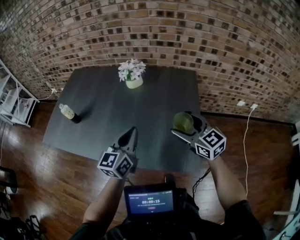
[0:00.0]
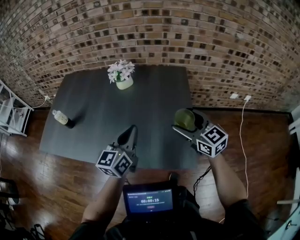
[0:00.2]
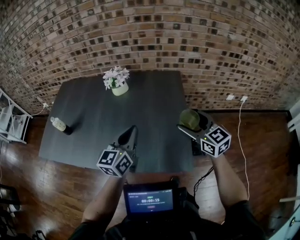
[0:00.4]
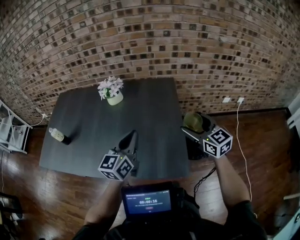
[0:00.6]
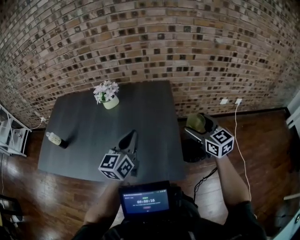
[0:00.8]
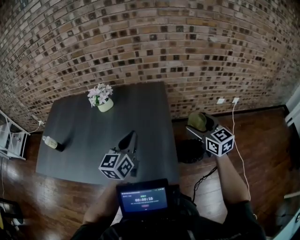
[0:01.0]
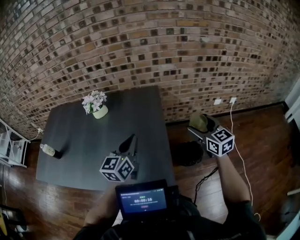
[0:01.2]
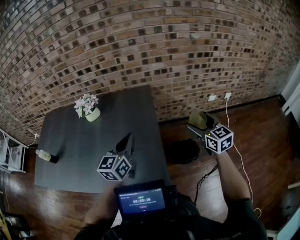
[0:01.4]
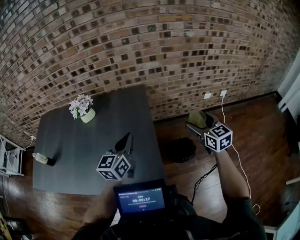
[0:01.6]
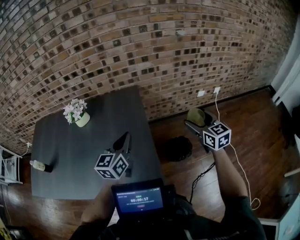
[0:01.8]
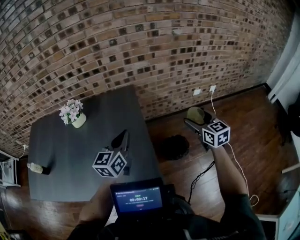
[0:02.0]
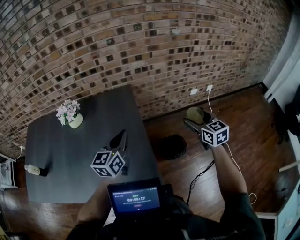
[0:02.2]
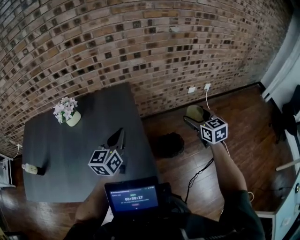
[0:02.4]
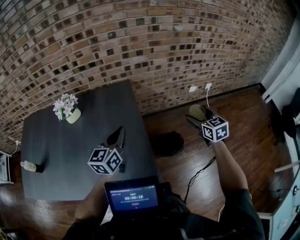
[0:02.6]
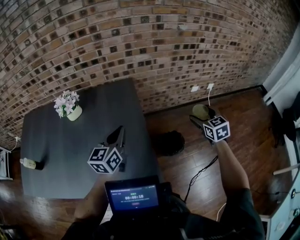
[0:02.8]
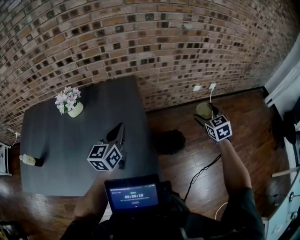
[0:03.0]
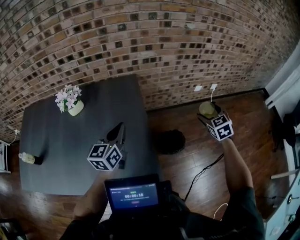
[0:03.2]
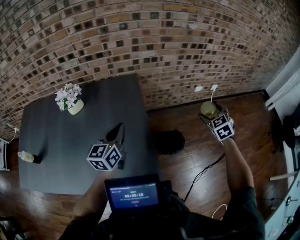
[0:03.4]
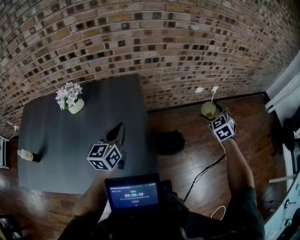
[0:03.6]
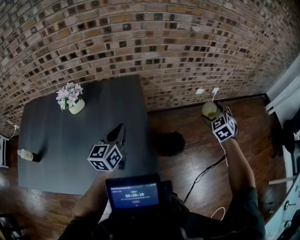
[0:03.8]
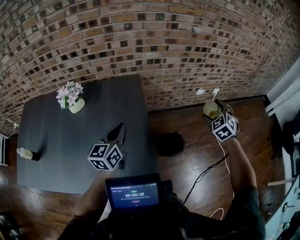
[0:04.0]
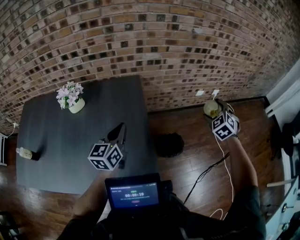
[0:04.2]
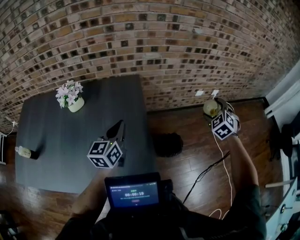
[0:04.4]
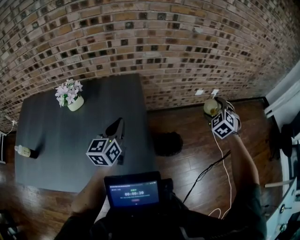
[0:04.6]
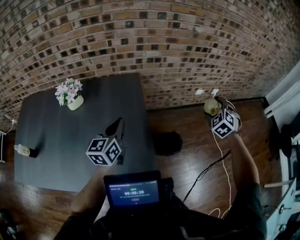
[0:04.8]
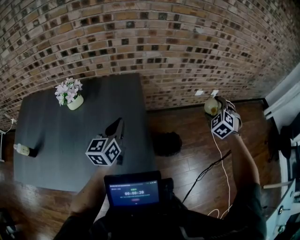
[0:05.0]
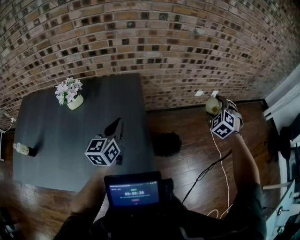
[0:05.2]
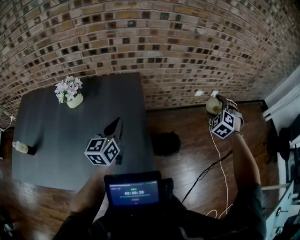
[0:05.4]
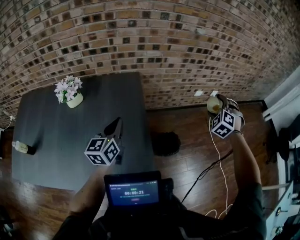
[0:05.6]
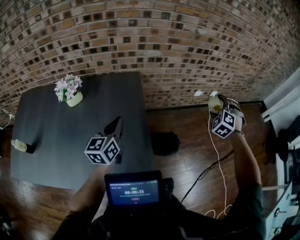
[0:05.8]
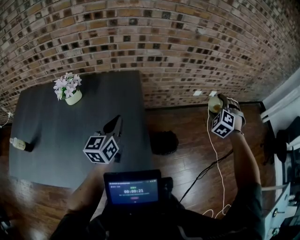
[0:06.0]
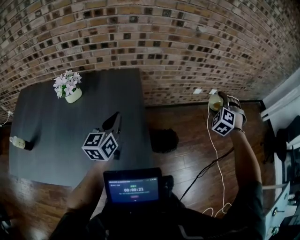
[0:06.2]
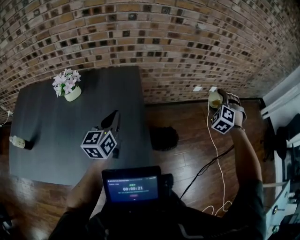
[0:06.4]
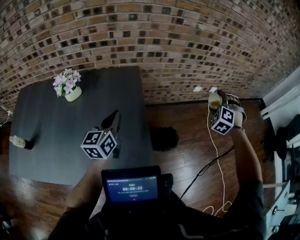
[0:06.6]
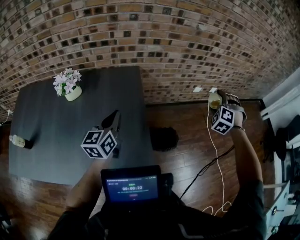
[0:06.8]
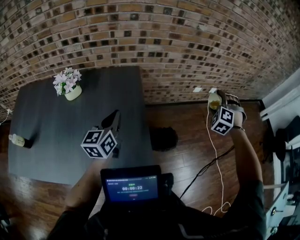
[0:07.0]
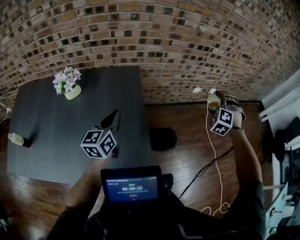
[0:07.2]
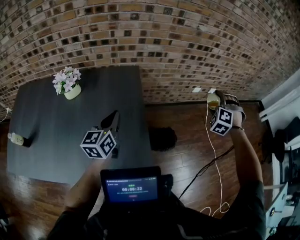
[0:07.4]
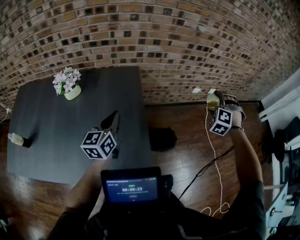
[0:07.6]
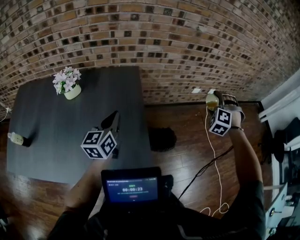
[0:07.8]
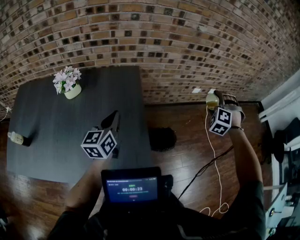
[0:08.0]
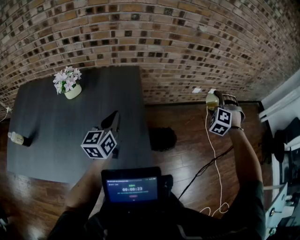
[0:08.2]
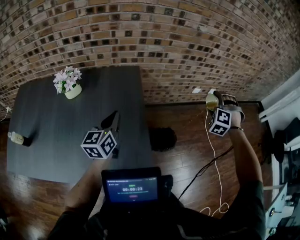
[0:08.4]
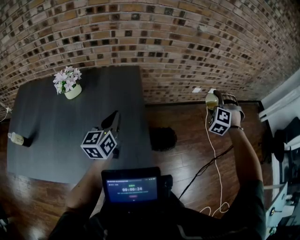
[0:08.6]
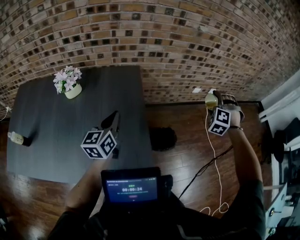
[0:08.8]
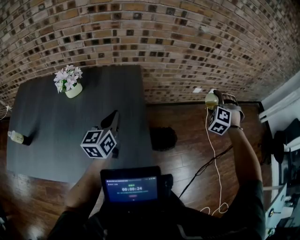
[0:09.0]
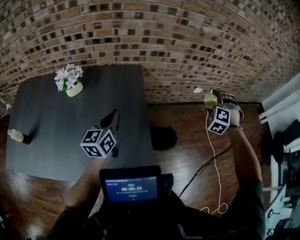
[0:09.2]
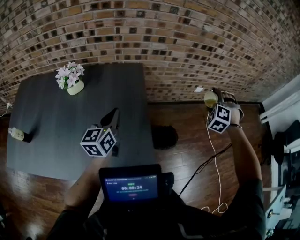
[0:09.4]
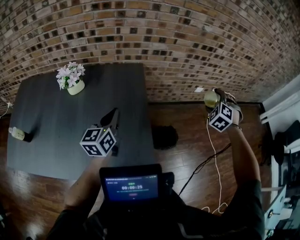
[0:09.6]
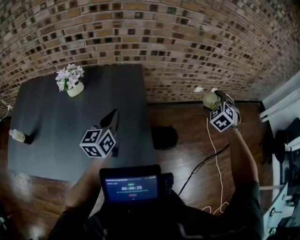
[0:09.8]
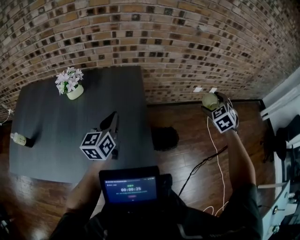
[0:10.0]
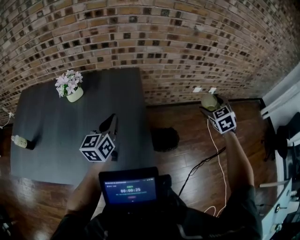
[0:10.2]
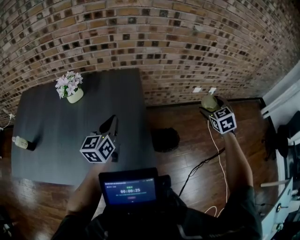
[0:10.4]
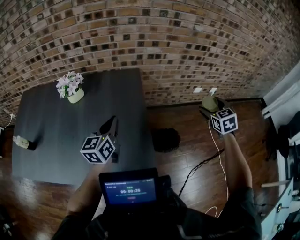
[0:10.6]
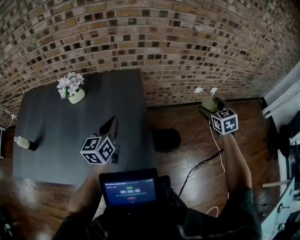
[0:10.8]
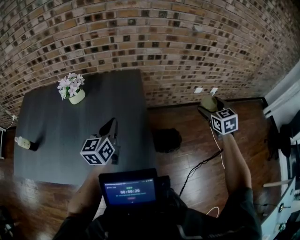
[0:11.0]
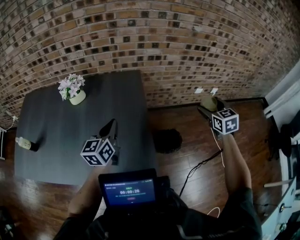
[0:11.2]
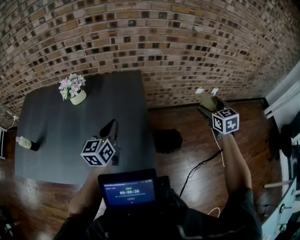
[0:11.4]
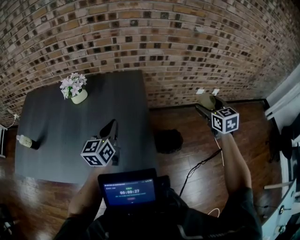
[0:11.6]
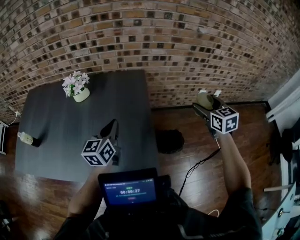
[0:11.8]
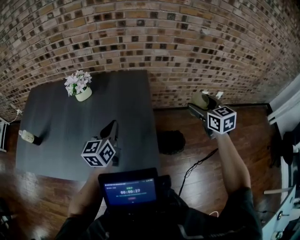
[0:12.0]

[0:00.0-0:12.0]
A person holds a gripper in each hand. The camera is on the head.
0:00.0 to 0:01.6: Both grippers travel together to the right, about 30 cm. The right gripper swivels about 30 degrees.
0:01.6 to 0:03.0: The right gripper travels to the right by roughly 5 cm, and rotates some 30 degrees. Meanwhile the left gripper travels forward by some 5 cm.
0:03.0 to 0:04.4: The right gripper ends up roughly 5 cm from where it was, and rotates about 30 degrees.
0:04.4 to 0:06.0: The right gripper turns by some 20 degrees.
0:06.0 to 0:09.0: There are only small adjustments of the grippers.
0:09.0 to 0:10.4: The right gripper rotates around the line of its fingers by approximately 50 degrees, clockwise from behind.
0:10.4 to 0:12.0: The right gripper heads to the left, covering about 10 cm, and rotates about 30 degrees.

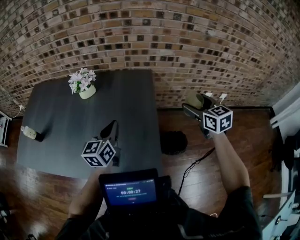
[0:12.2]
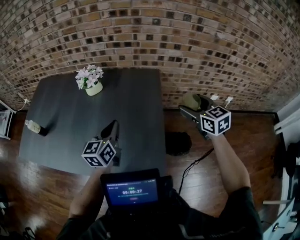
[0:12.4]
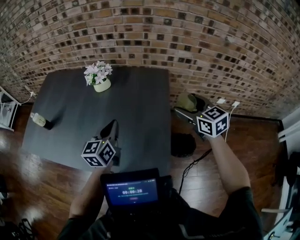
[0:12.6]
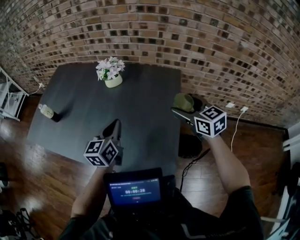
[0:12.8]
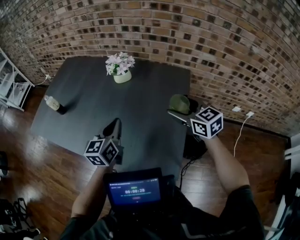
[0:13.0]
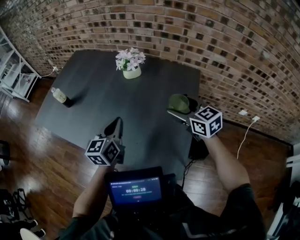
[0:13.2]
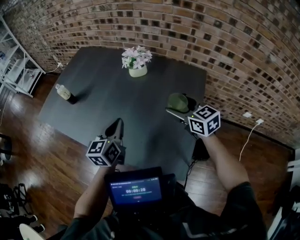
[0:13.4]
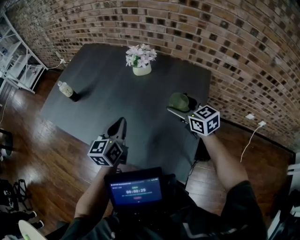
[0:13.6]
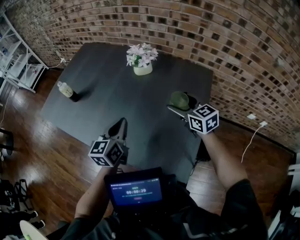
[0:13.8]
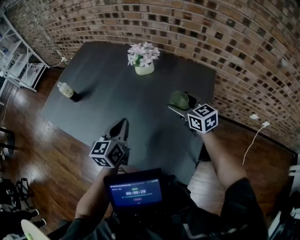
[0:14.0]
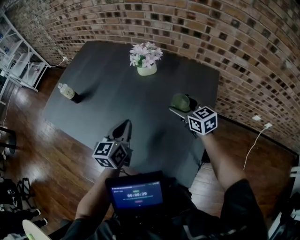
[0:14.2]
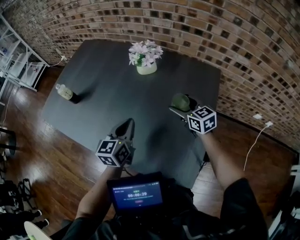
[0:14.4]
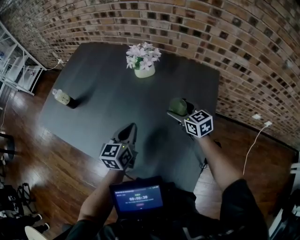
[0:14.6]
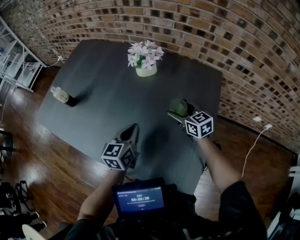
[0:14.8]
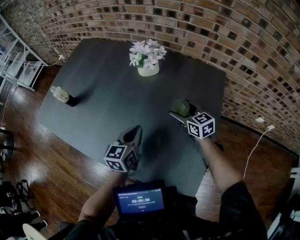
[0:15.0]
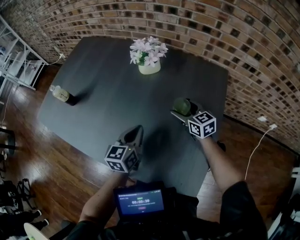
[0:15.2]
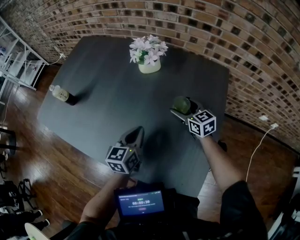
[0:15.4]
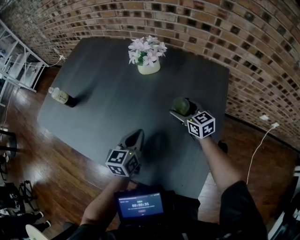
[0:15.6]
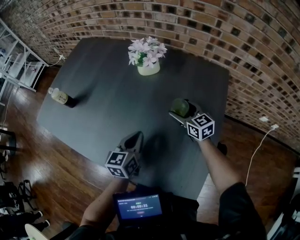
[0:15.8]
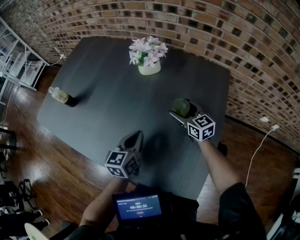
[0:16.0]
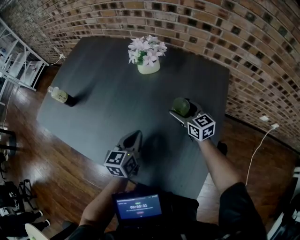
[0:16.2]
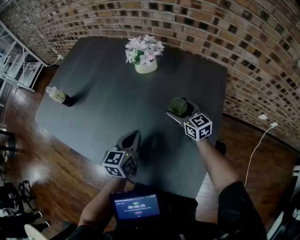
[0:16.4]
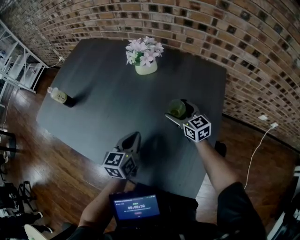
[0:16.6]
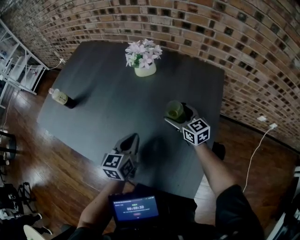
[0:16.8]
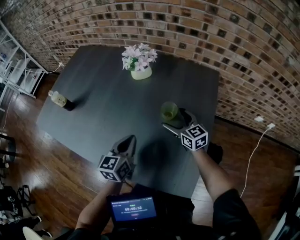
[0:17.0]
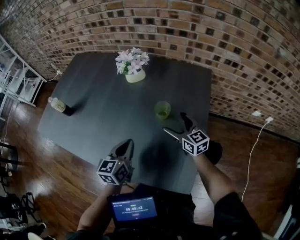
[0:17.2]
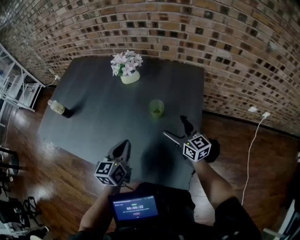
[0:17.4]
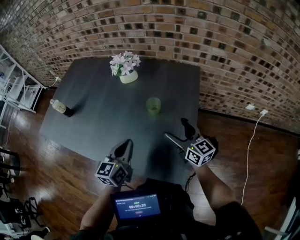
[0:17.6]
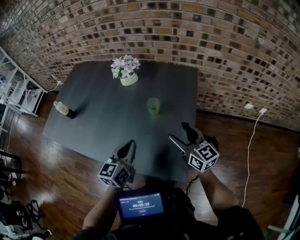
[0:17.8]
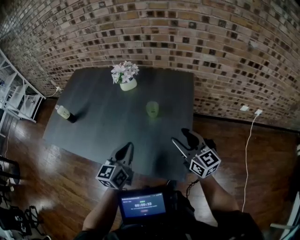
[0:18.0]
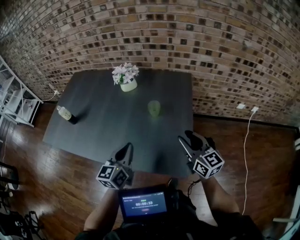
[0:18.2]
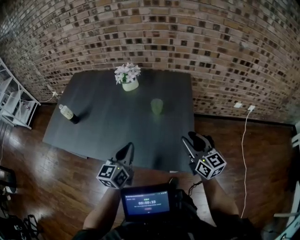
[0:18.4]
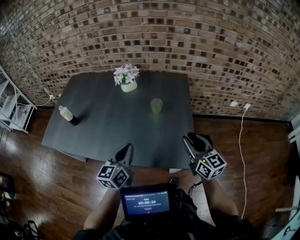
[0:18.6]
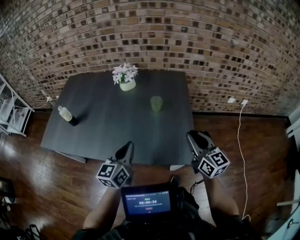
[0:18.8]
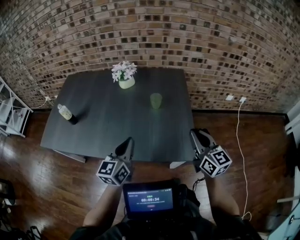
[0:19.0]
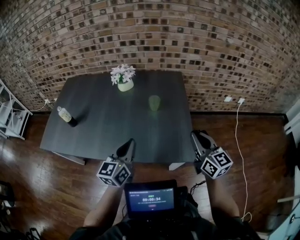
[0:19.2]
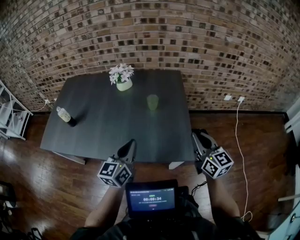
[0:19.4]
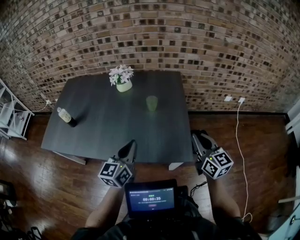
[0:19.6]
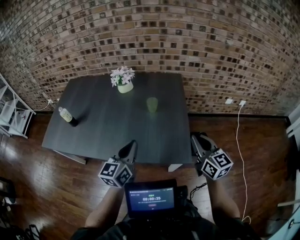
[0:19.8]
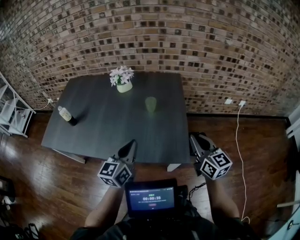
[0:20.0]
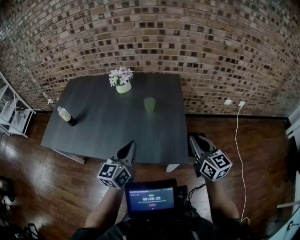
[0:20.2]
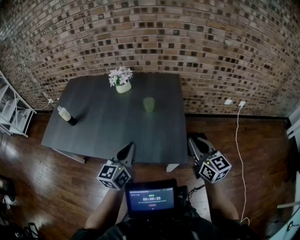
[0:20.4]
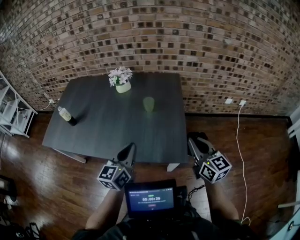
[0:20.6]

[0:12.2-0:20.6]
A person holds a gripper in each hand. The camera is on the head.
0:12.2 to 0:13.6: The right gripper ends up roughly 35 cm from where it was, and rotates about 30 degrees, while the left gripper changes place by some 20 cm, and changes its angle by roughly 20 degrees.
0:13.6 to 0:15.0: The grippers both shift downward and forward by some 15 cm.
0:15.0 to 0:16.4: There are only small adjustments of the grippers.
0:16.4 to 0:17.8: The left gripper shifts about 15 cm backward and upward; the right gripper moves backward and upward, approximately 30 cm.
0:17.8 to 0:19.2: The left gripper shifts some 15 cm to the left, backward and upward. Meanwhile the right gripper goes some 20 cm backward and upward, swivels approximately 20 degrees, and closes.
0:19.2 to 0:20.6: The right gripper changes place by roughly 5 cm. Meanwhile the left gripper moves to the right, approximately 5 cm.

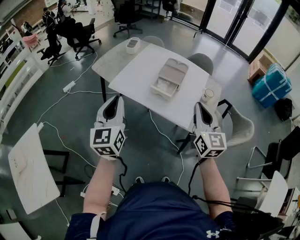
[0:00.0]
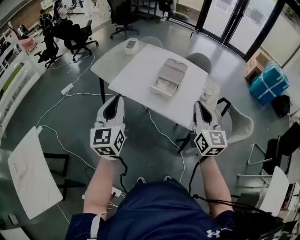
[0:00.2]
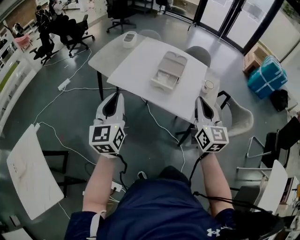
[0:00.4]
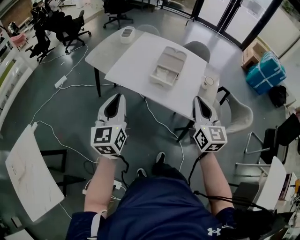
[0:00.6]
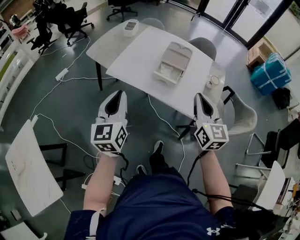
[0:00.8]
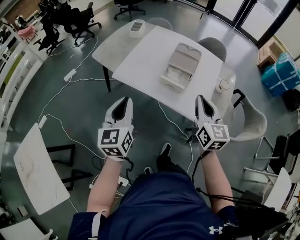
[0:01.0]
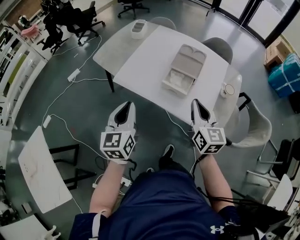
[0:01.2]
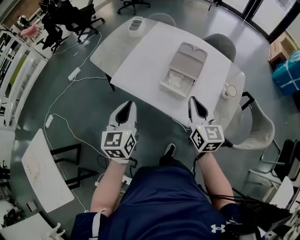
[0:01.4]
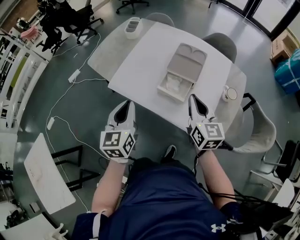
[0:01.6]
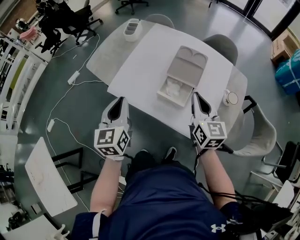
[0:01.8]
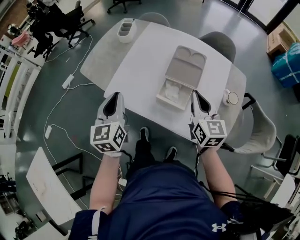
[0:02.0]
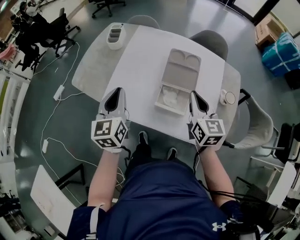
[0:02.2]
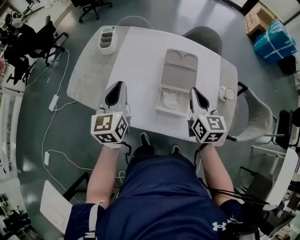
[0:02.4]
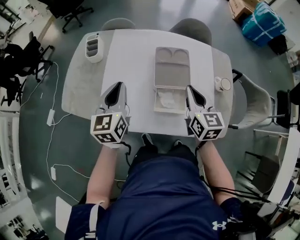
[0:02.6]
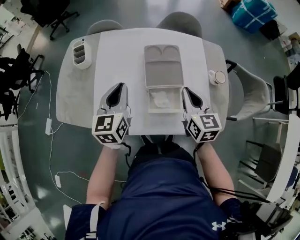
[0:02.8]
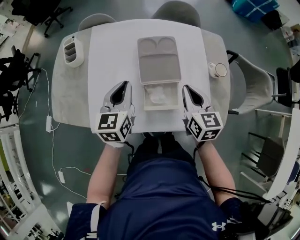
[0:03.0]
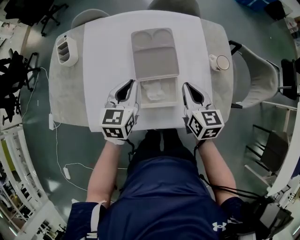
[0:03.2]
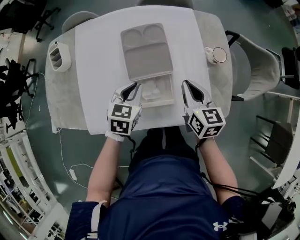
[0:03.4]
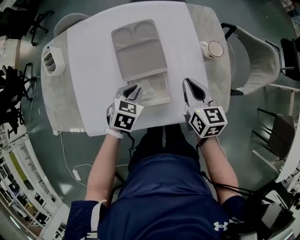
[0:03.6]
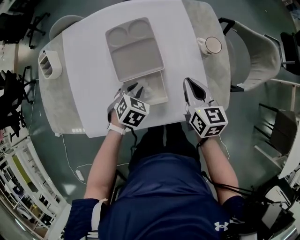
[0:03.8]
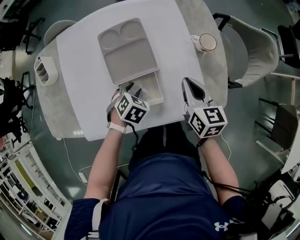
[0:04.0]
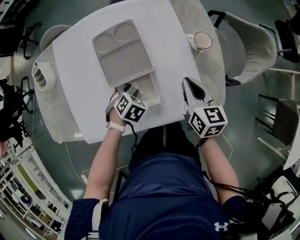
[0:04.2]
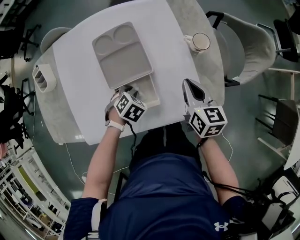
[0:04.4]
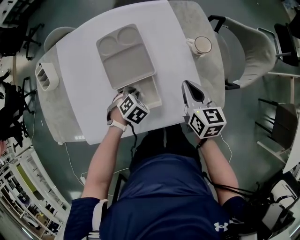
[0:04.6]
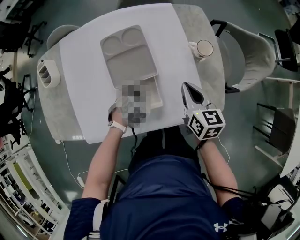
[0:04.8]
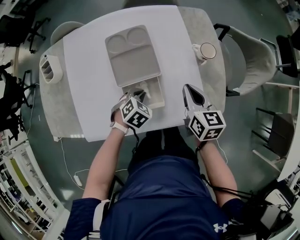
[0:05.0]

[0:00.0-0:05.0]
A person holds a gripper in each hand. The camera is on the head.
0:00.0 to 0:01.6: Both grippers travel together forward and downward, some 20 cm.
0:01.6 to 0:03.4: The left gripper shifts by approximately 30 cm, and swivels roughly 60 degrees. Meanwhile the right gripper heads downward, covering roughly 10 cm, and rotates about 40 degrees.
0:03.4 to 0:05.0: The left gripper heads downward, covering approximately 10 cm, swivels approximately 40 degrees, and opens, then closes once more; the right gripper shifts by roughly 5 cm.
